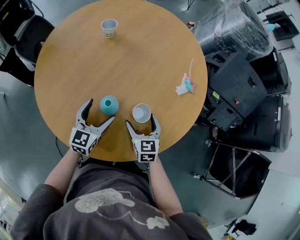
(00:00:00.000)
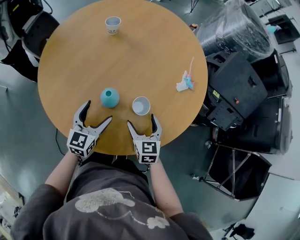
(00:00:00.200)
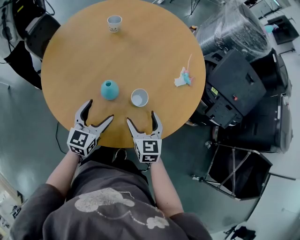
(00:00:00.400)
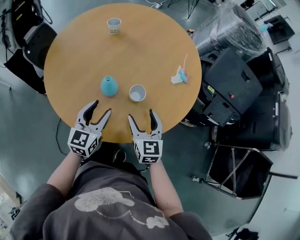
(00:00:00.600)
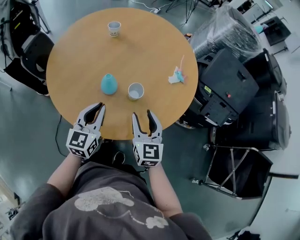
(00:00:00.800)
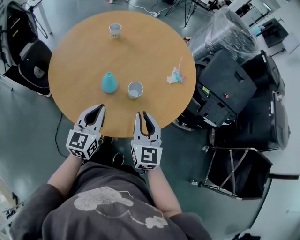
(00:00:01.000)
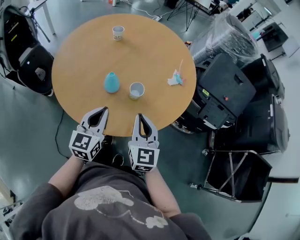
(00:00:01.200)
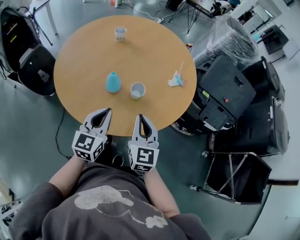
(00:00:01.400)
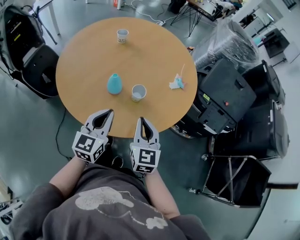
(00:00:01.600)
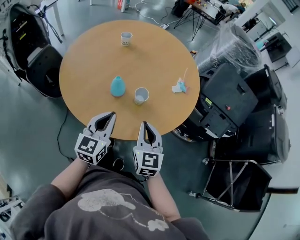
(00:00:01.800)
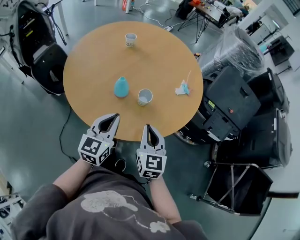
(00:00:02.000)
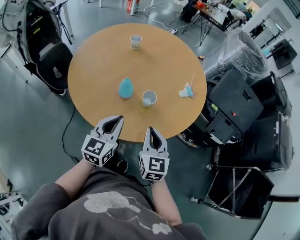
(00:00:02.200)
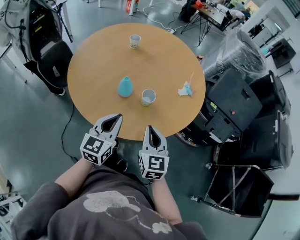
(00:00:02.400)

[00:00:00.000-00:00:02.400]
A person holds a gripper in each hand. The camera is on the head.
00:00:00.000 to 00:00:01.200: The left gripper heads backward and upward, covering about 20 cm, and closes its fingers. The right gripper shifts some 25 cm upward and backward, turns by some 20 degrees, and closes up.
00:00:01.200 to 00:00:02.400: There are only small adjustments of the grippers.

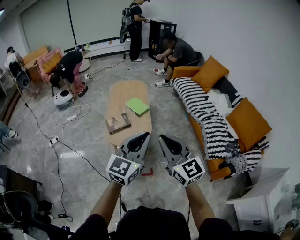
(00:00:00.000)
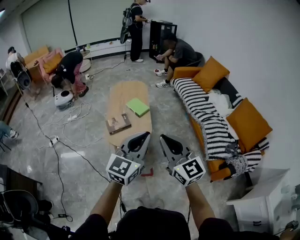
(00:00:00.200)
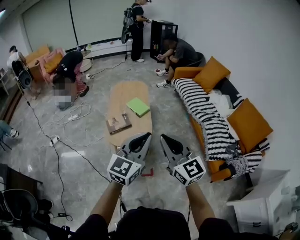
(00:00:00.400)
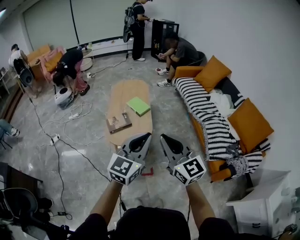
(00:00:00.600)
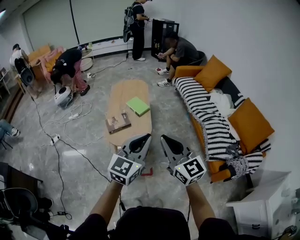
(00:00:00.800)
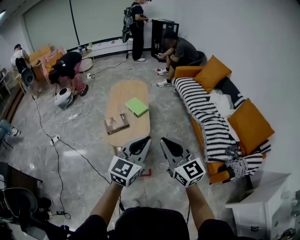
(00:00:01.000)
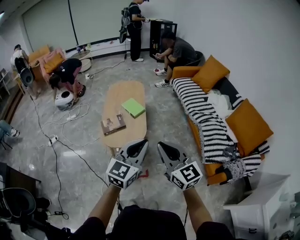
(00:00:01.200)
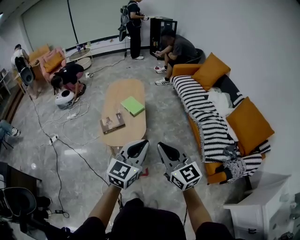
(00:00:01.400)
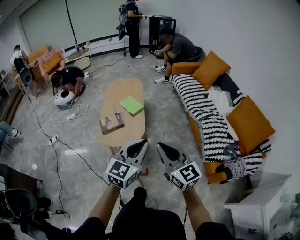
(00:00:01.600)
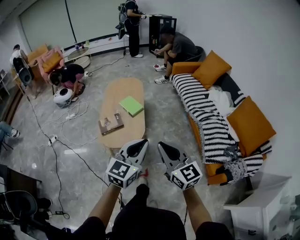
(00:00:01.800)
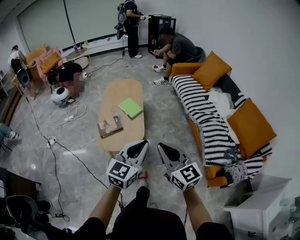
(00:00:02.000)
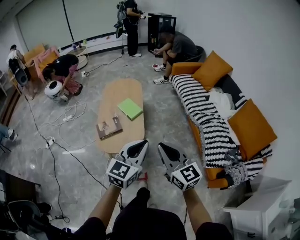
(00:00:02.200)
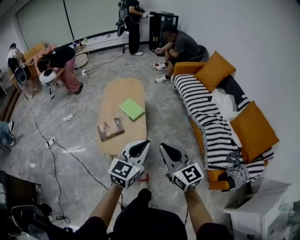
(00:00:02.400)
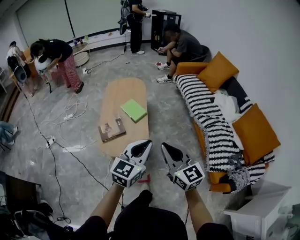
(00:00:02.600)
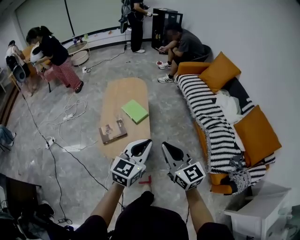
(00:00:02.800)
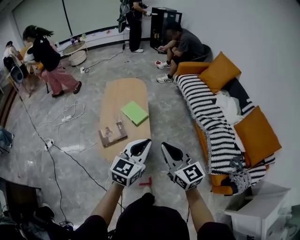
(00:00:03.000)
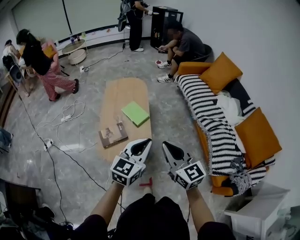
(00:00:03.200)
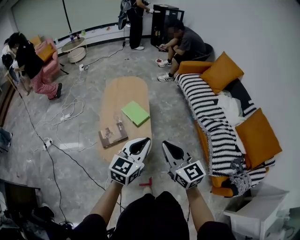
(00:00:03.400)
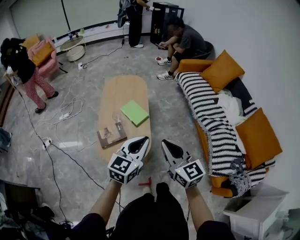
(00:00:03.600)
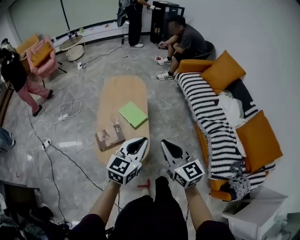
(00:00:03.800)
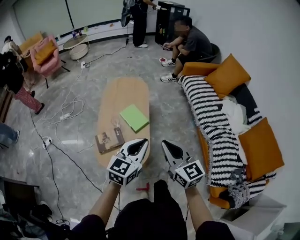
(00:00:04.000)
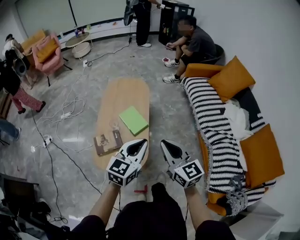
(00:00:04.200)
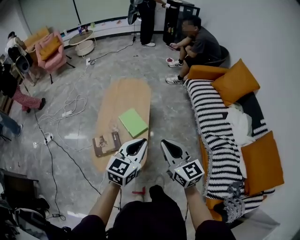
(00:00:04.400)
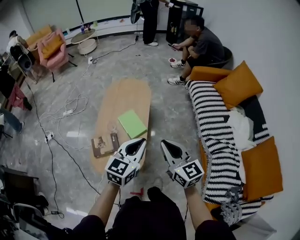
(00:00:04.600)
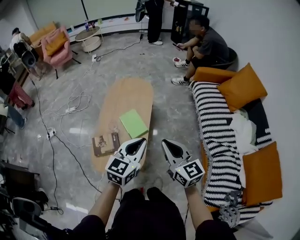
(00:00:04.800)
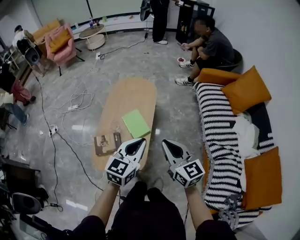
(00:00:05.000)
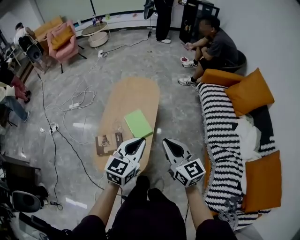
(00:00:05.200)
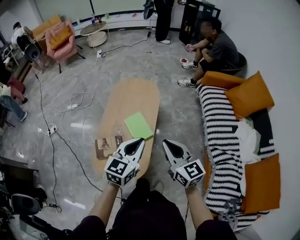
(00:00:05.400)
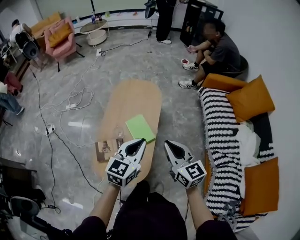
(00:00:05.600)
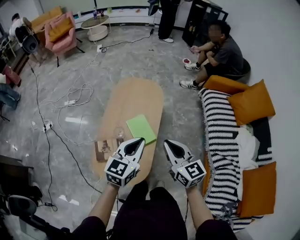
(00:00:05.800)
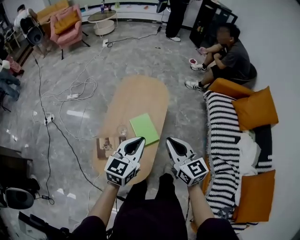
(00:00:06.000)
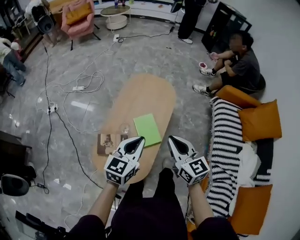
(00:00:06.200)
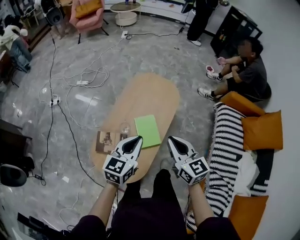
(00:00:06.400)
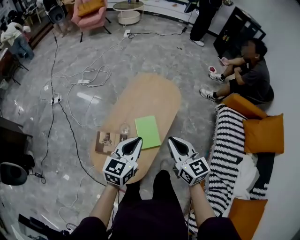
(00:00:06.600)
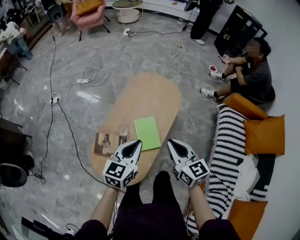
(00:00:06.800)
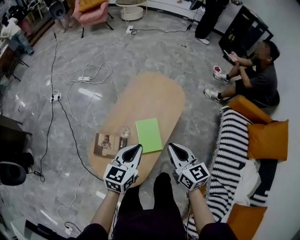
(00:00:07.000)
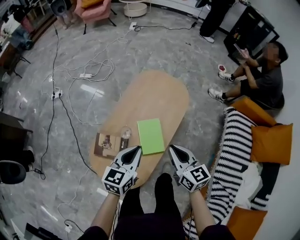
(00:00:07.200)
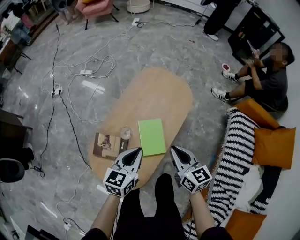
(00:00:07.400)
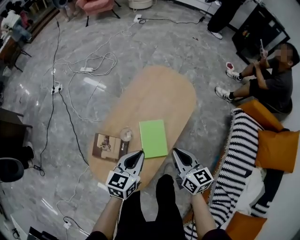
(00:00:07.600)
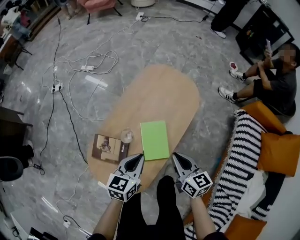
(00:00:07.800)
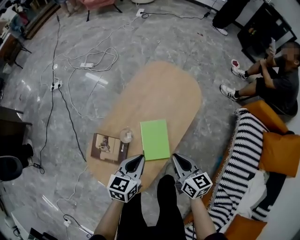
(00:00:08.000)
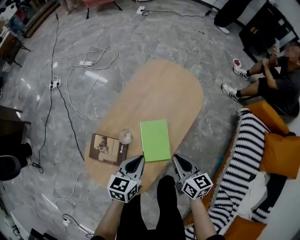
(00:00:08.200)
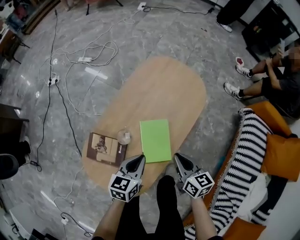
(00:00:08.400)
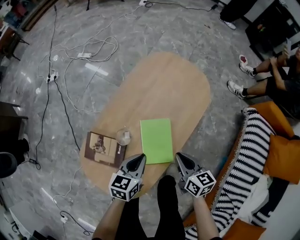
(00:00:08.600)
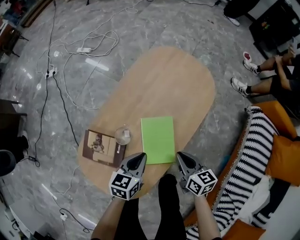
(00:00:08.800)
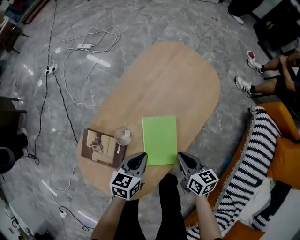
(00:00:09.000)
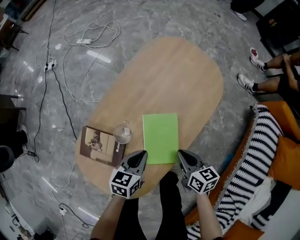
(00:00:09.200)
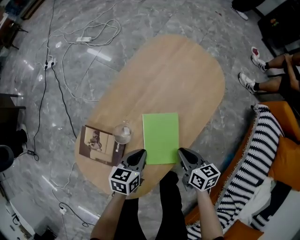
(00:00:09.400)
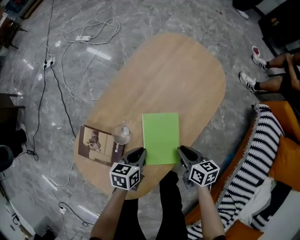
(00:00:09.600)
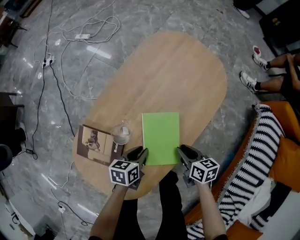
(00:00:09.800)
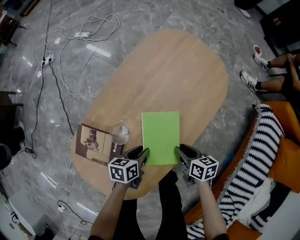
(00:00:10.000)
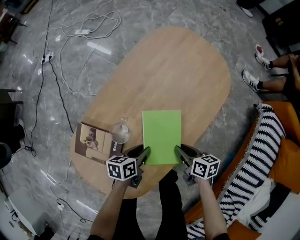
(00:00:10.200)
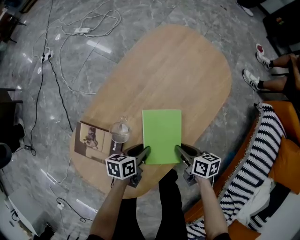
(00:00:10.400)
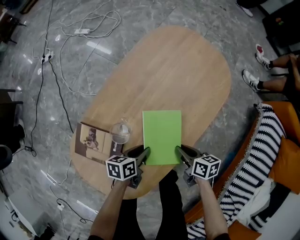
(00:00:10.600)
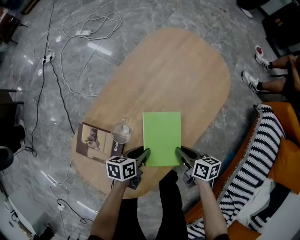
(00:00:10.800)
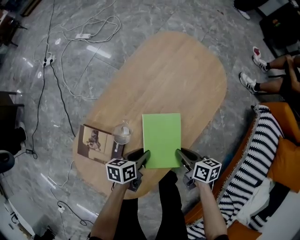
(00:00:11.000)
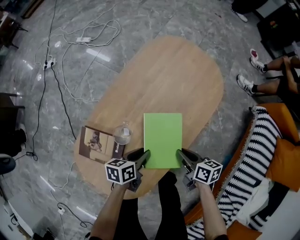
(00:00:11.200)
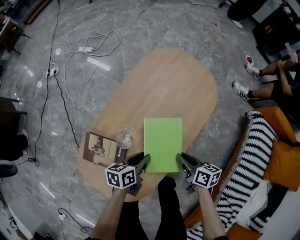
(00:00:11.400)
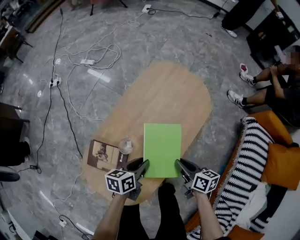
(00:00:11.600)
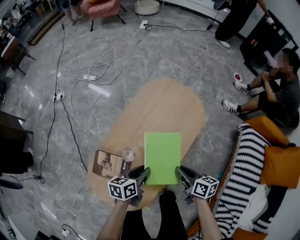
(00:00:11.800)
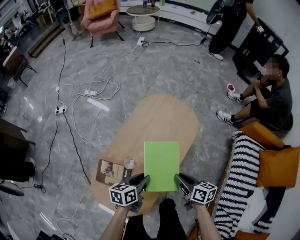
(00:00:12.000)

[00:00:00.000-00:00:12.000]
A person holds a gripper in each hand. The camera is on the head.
00:00:00.000 to 00:00:01.600: Both grippers travel together to the right and downward, approximately 15 cm.
00:00:01.600 to 00:00:03.000: Both grippers move forward, roughly 20 cm.
00:00:03.000 to 00:00:04.400: Both grippers move forward, approximately 25 cm.
00:00:04.400 to 00:00:06.000: The right gripper heads forward, covering approximately 20 cm; the left gripper moves forward and to the left, approximately 20 cm.
00:00:06.000 to 00:00:07.600: The grippers both shift downward and forward by some 25 cm. The right gripper rotates approximately 20 degrees. The left gripper changes its angle by roughly 30 degrees.
00:00:07.600 to 00:00:09.000: Both grippers travel together downward, roughly 25 cm.
00:00:09.000 to 00:00:10.400: Both grippers travel together downward, roughly 15 cm. The right gripper swivels approximately 20 degrees; the left gripper turns by roughly 30 degrees, and opens up.
00:00:10.400 to 00:00:12.000: Both grippers move upward, about 30 cm.

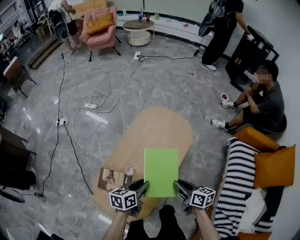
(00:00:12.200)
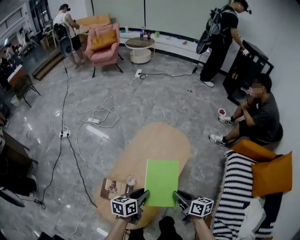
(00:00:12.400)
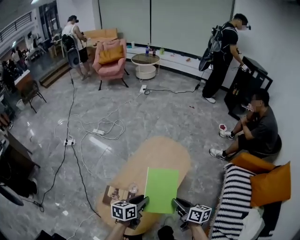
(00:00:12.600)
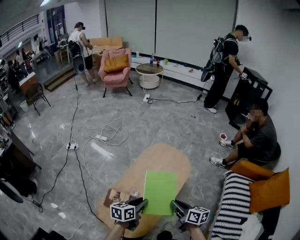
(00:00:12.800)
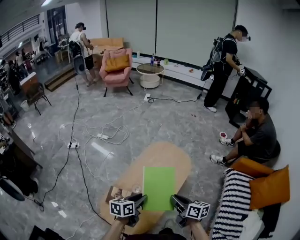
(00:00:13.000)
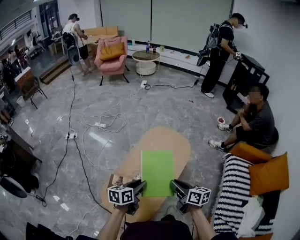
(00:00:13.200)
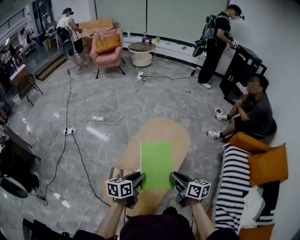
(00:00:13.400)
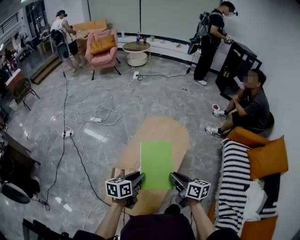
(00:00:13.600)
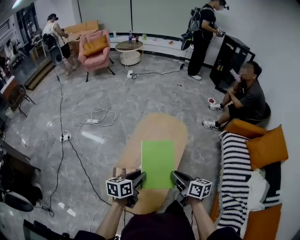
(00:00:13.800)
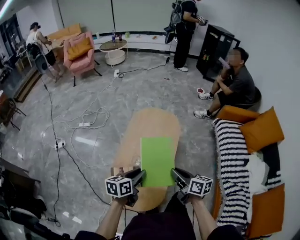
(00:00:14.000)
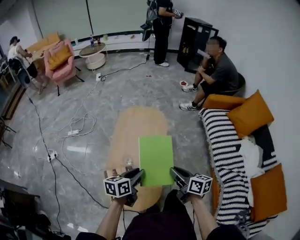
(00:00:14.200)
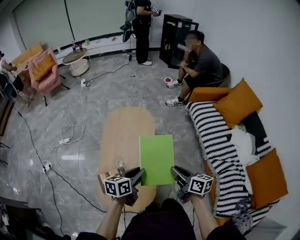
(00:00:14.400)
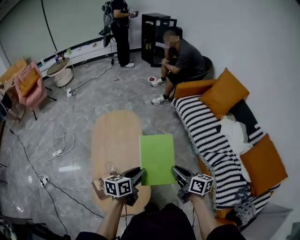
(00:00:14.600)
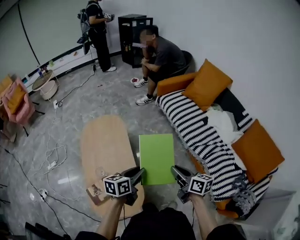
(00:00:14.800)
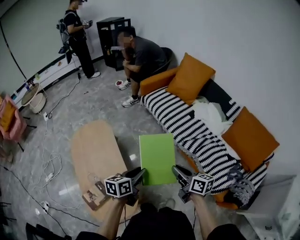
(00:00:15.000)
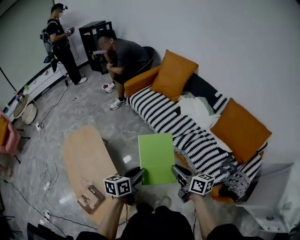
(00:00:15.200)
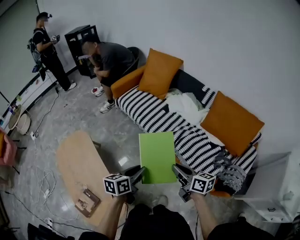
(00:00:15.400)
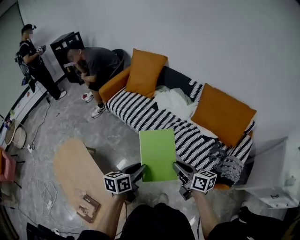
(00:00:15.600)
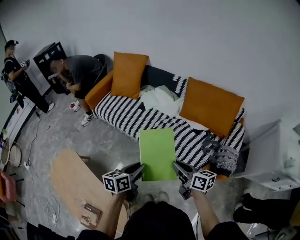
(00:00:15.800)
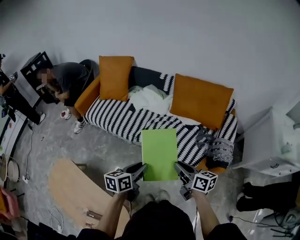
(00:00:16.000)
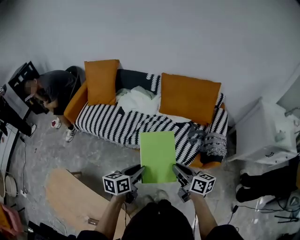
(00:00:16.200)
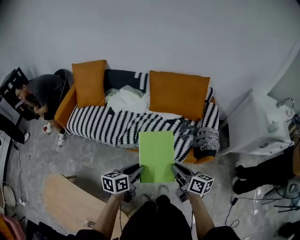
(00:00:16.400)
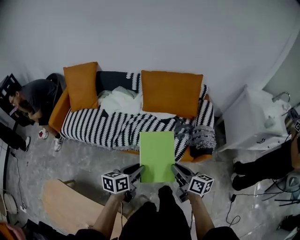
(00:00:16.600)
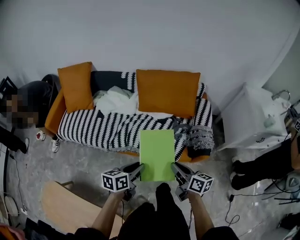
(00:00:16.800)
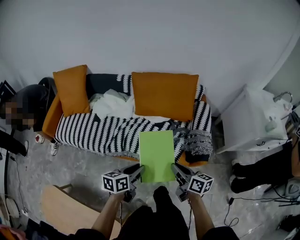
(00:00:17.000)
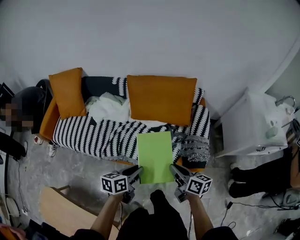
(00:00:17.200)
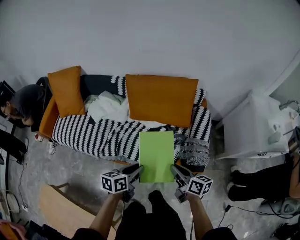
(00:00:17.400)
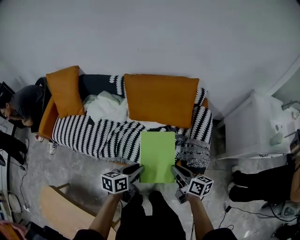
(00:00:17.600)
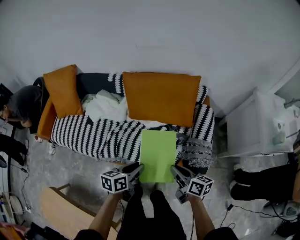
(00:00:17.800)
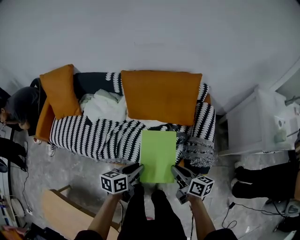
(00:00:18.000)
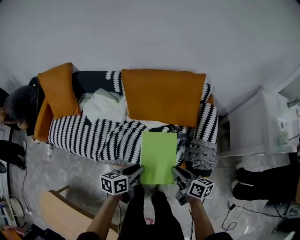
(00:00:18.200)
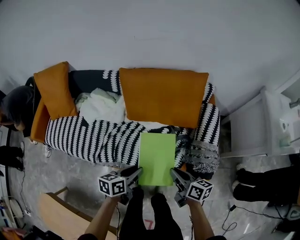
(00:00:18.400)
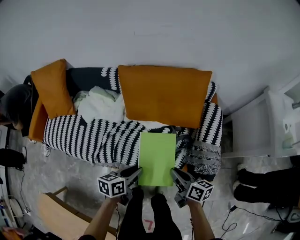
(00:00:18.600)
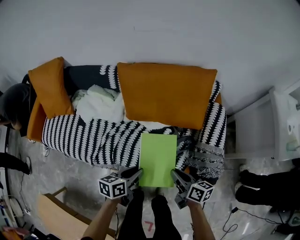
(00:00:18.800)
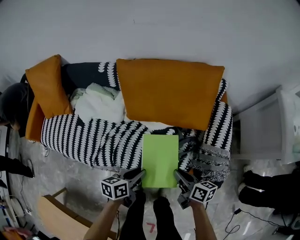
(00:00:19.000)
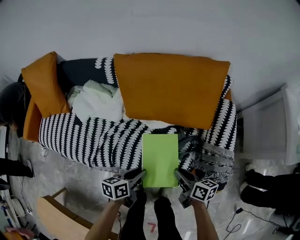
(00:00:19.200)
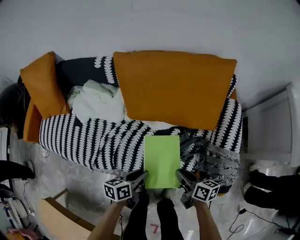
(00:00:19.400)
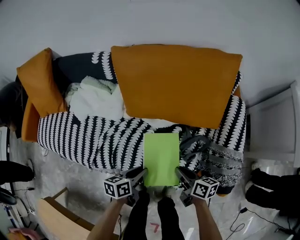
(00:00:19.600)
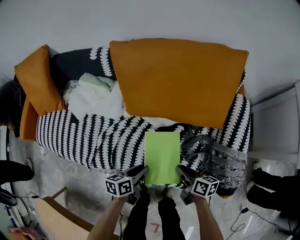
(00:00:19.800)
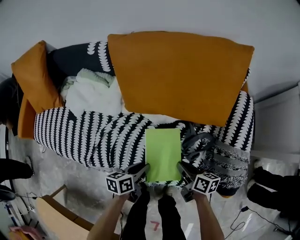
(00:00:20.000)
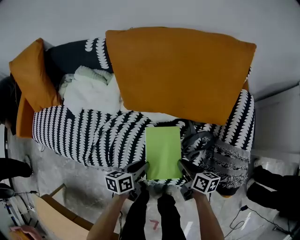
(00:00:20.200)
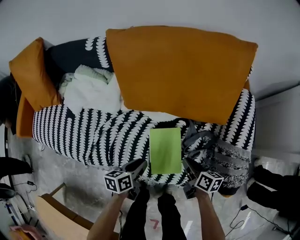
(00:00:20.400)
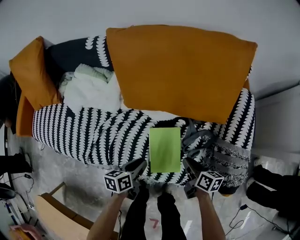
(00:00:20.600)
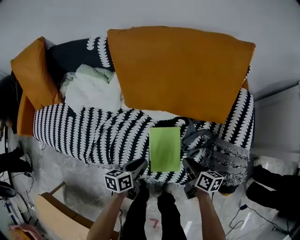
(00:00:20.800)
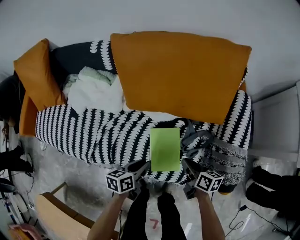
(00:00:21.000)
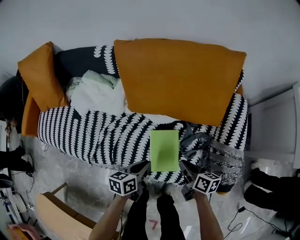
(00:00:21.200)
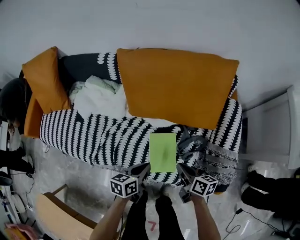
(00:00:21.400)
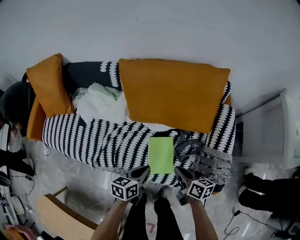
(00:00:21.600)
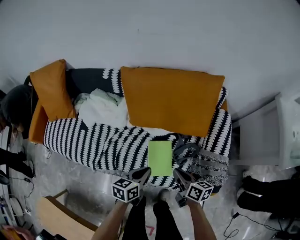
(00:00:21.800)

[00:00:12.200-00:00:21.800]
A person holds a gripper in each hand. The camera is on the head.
00:00:12.200 to 00:00:13.800: Both grippers travel together upward, backward and to the left, about 20 cm.
00:00:13.800 to 00:00:15.400: The two grippers travel together, about 50 cm. The right gripper swivels about 60 degrees. Meanwhile the left gripper rotates roughly 60 degrees.
00:00:15.400 to 00:00:17.000: The right gripper ends up some 30 cm from where it was, and turns by about 40 degrees. The left gripper moves approximately 30 cm, and changes its angle by roughly 40 degrees.
00:00:17.000 to 00:00:18.600: Both grippers move forward and downward, some 25 cm.
00:00:18.600 to 00:00:20.200: Both grippers travel together downward, about 25 cm.
00:00:20.200 to 00:00:21.800: Both grippers travel together upward, about 20 cm. The left gripper closes its fingers.
